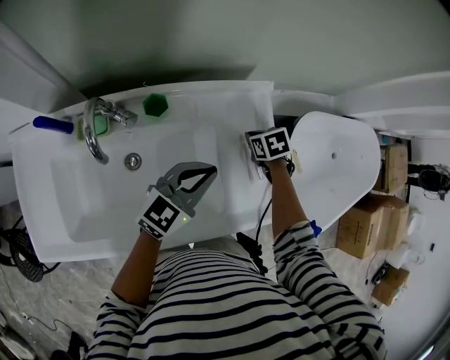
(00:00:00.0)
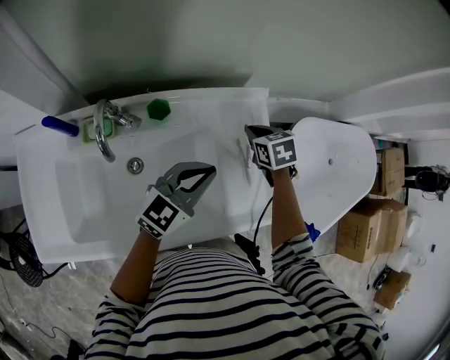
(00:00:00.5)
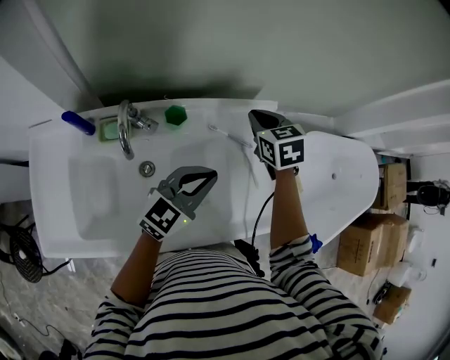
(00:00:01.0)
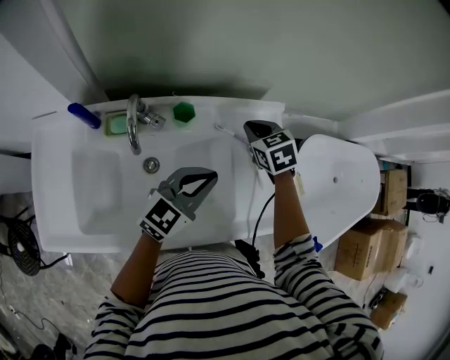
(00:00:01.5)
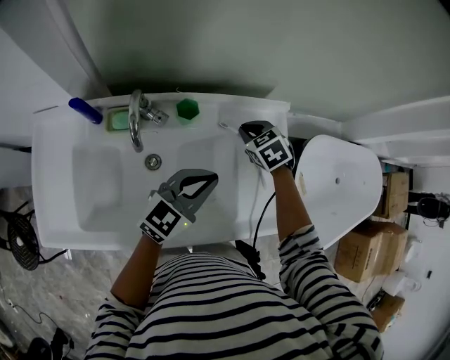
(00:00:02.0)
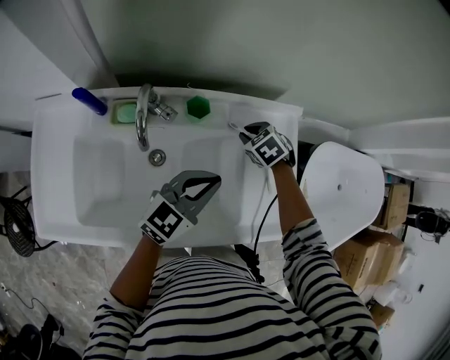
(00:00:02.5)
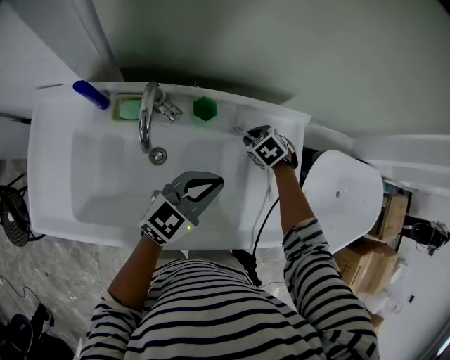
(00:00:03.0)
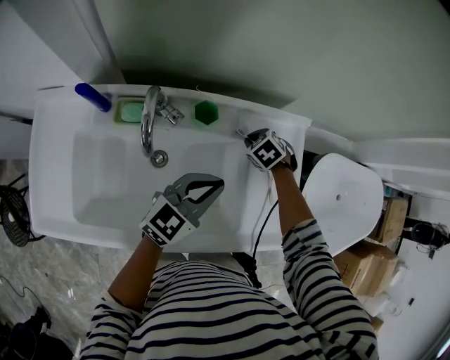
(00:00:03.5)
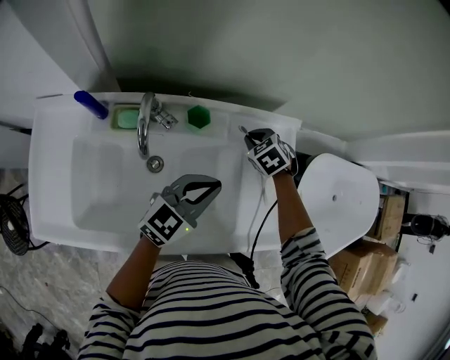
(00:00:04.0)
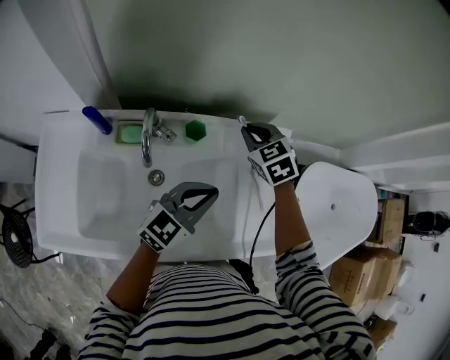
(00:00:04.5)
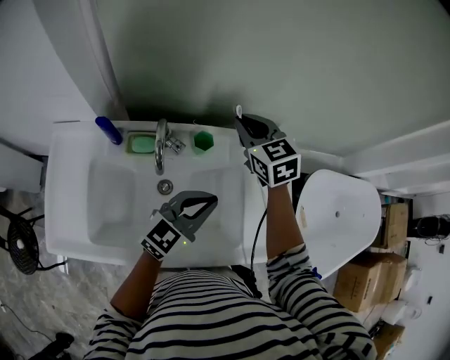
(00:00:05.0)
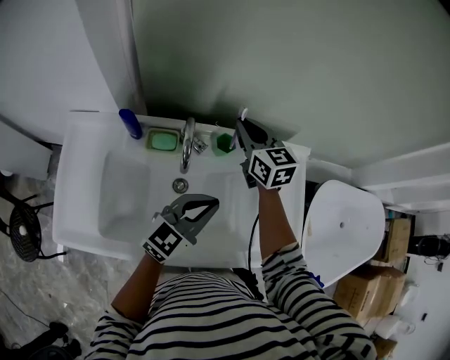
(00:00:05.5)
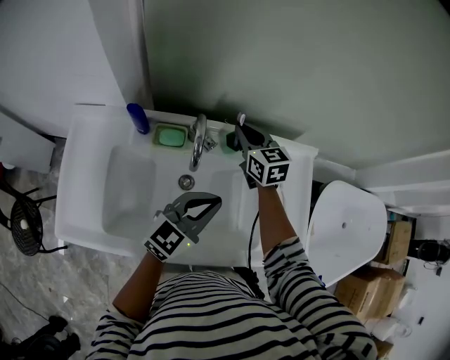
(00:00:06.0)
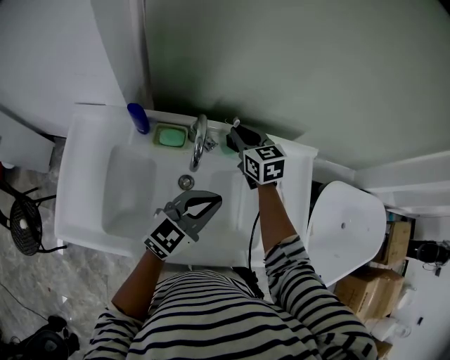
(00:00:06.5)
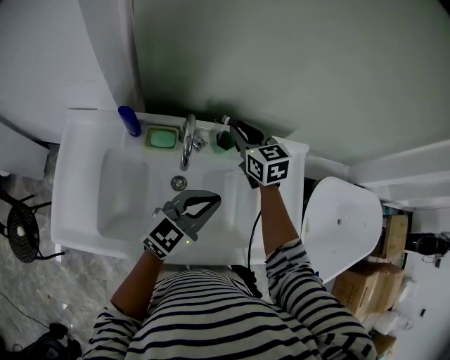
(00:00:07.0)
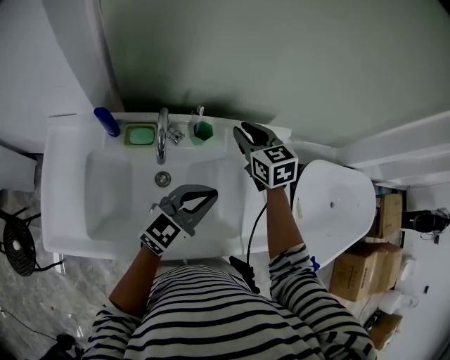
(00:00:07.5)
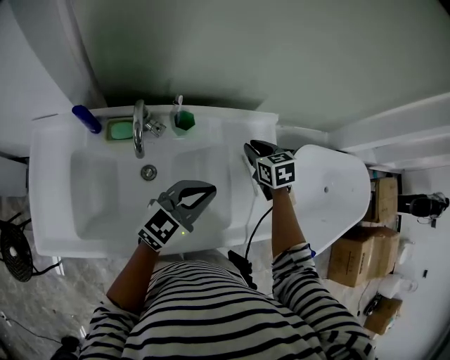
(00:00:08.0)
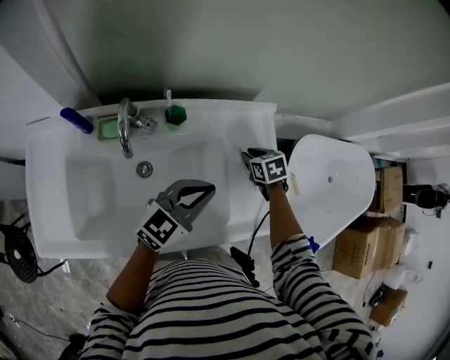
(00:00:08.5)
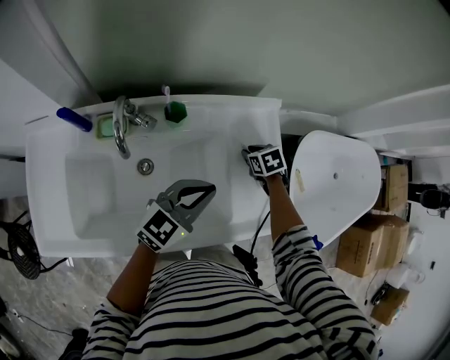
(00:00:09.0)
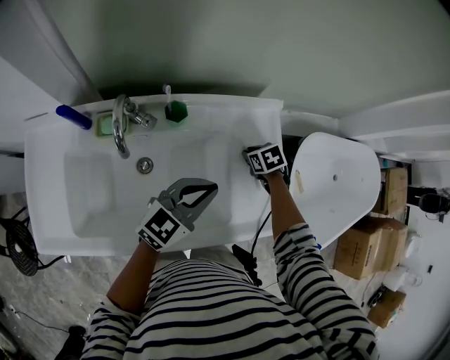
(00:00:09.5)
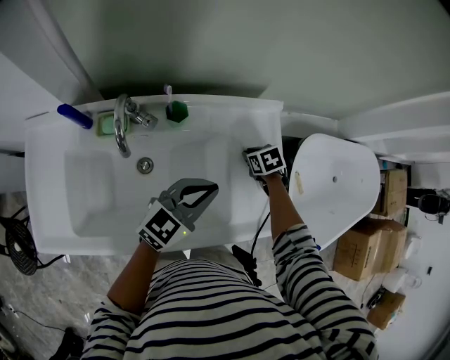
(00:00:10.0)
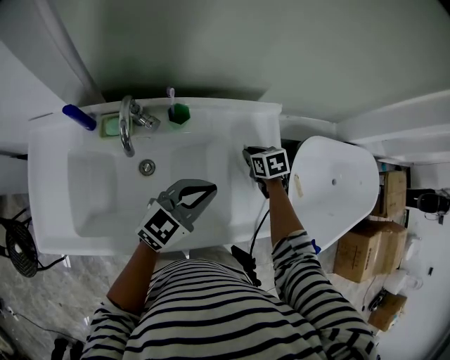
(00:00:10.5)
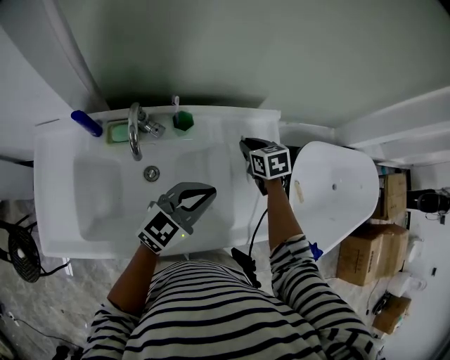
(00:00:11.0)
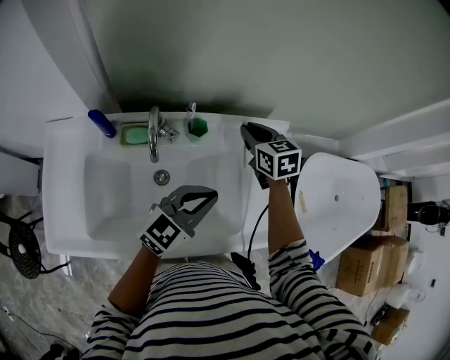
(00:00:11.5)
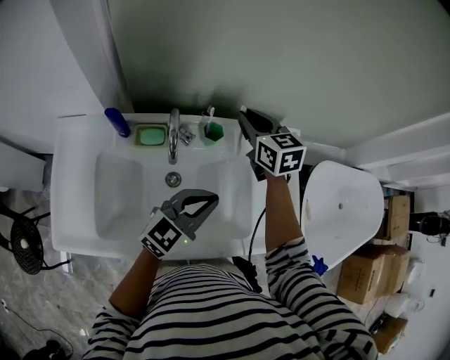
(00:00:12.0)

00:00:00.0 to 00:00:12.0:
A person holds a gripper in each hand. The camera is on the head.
00:00:00.0 to 00:00:02.0: The right gripper is displaced to the left and upward by some 15 cm, and turns by approximately 30 degrees. Meanwhile the left gripper shifts about 5 cm to the left.
00:00:04.0 to 00:00:06.0: The left gripper shifts some 10 cm to the left. The right gripper is displaced to the left and upward by roughly 20 cm, and points its fingers about 40 degrees further upward.
00:00:06.0 to 00:00:08.0: The right gripper moves to the right, roughly 25 cm, and changes its angle by approximately 30 degrees. Meanwhile the left gripper travels to the right by approximately 10 cm.
00:00:08.0 to 00:00:10.0: The right gripper shifts about 15 cm downward, and rotates about 20 degrees.
00:00:10.0 to 00:00:12.0: The right gripper moves upward and to the left, approximately 35 cm, and angles its fingers upward, by some 50 degrees. Meanwhile the left gripper shifts about 10 cm to the left.

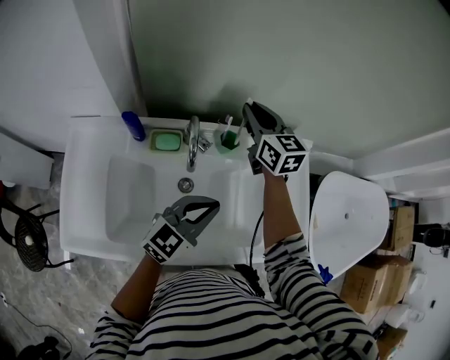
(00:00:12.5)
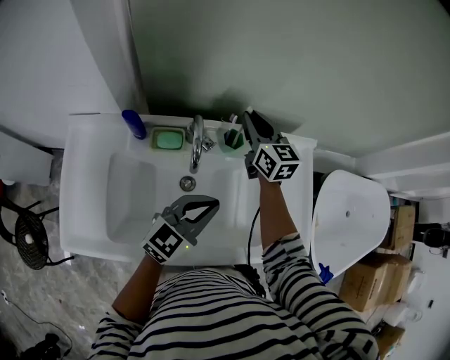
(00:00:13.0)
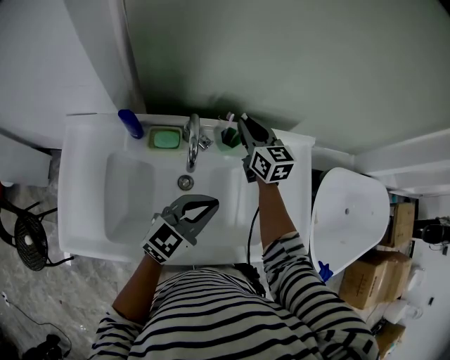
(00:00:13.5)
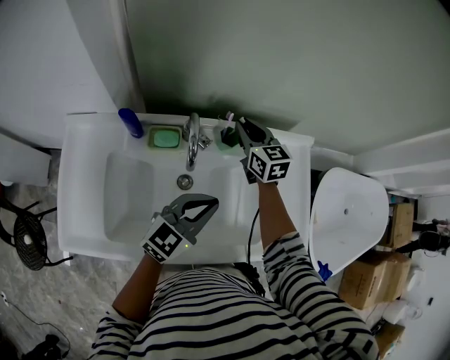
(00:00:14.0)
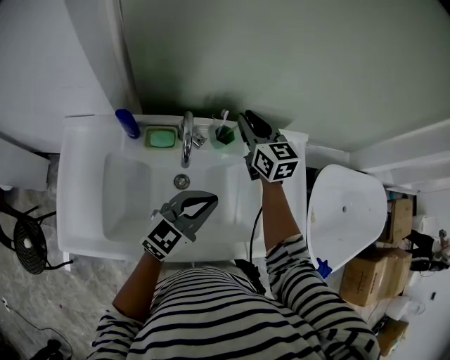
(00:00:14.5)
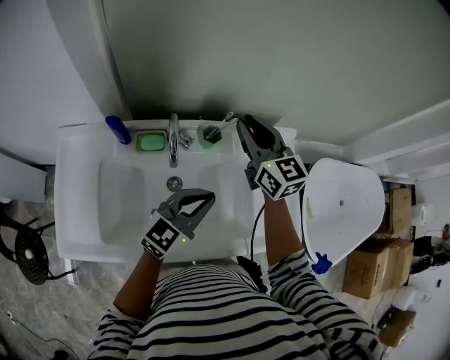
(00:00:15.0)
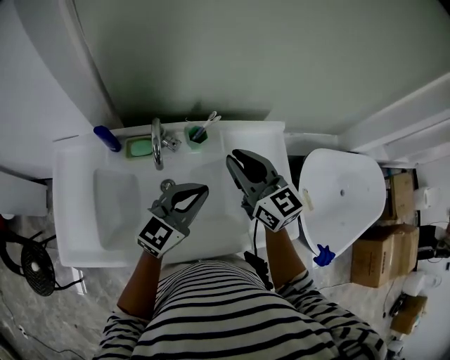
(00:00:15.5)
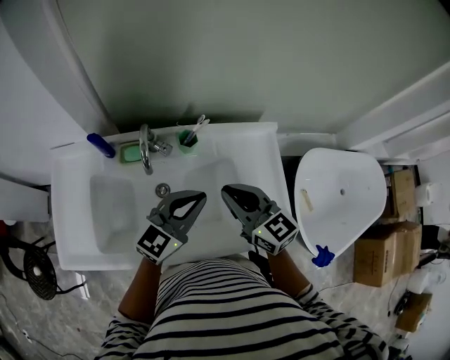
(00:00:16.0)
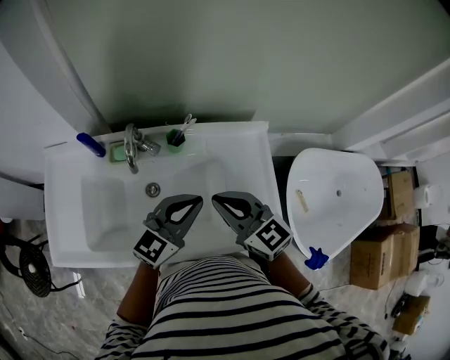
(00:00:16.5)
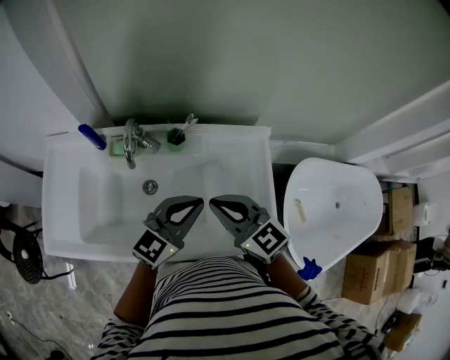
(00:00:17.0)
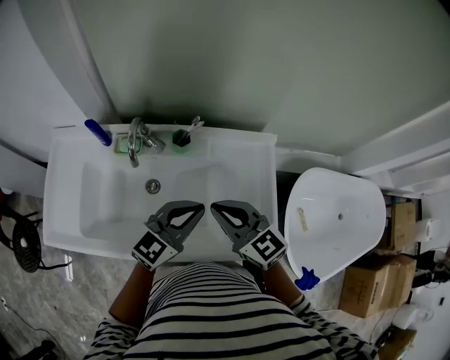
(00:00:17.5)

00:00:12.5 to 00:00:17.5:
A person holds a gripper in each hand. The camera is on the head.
00:00:12.5 to 00:00:15.0: The right gripper moves backward and to the right, approximately 10 cm, and moves about 10 cm downward and comes back.
00:00:15.0 to 00:00:17.5: The right gripper shifts some 20 cm backward and to the right, and rotates about 30 degrees. The left gripper goes some 10 cm to the right.

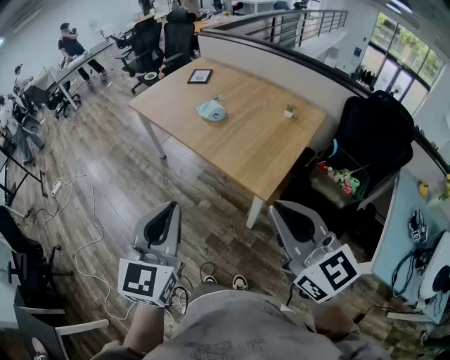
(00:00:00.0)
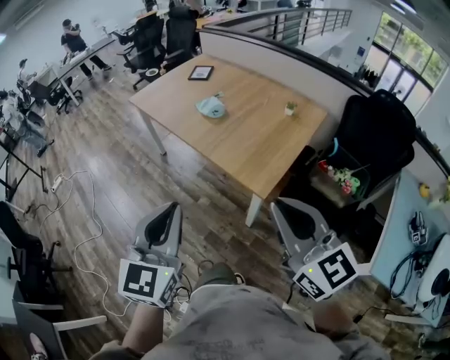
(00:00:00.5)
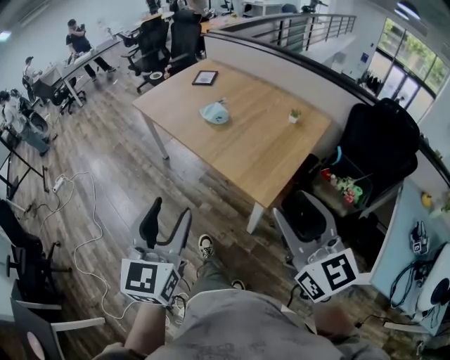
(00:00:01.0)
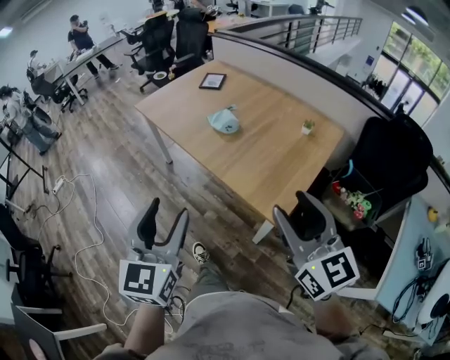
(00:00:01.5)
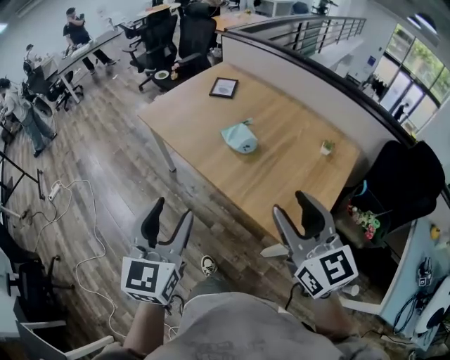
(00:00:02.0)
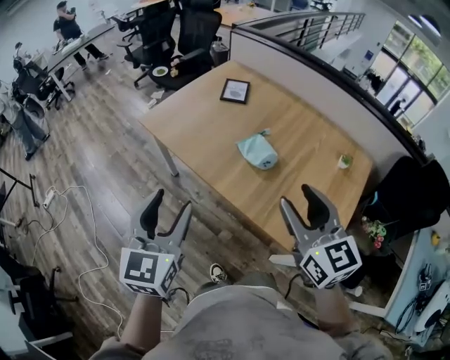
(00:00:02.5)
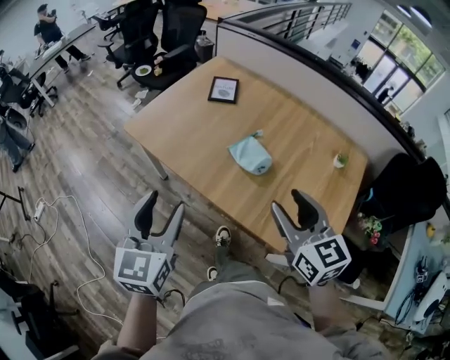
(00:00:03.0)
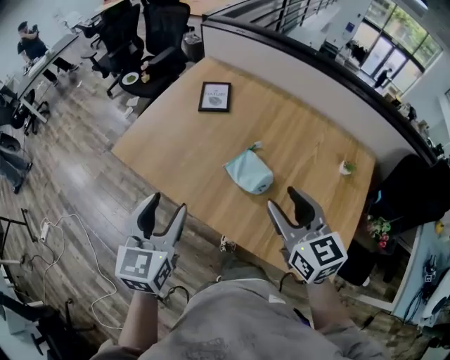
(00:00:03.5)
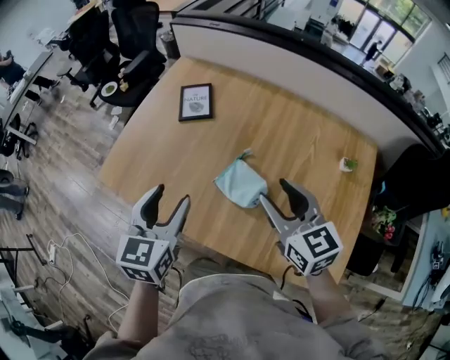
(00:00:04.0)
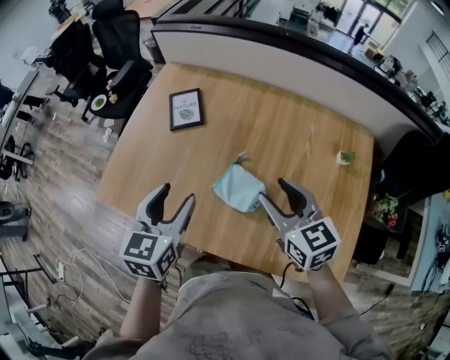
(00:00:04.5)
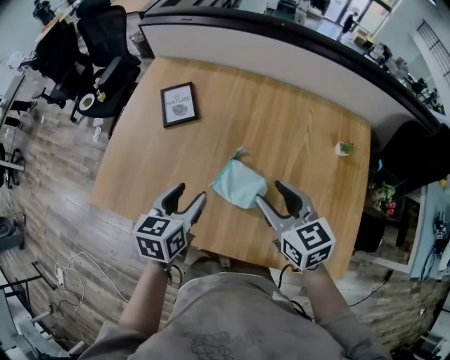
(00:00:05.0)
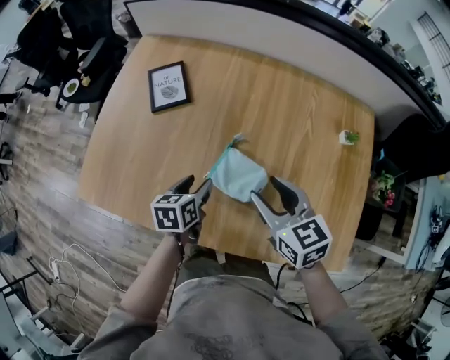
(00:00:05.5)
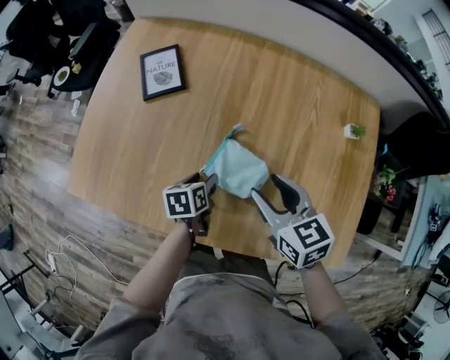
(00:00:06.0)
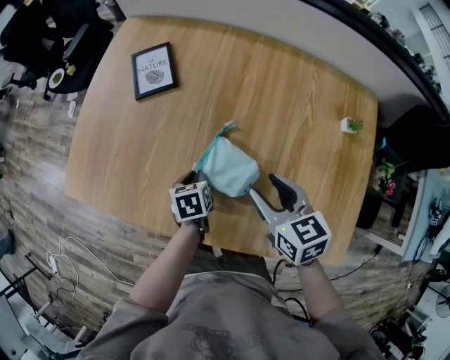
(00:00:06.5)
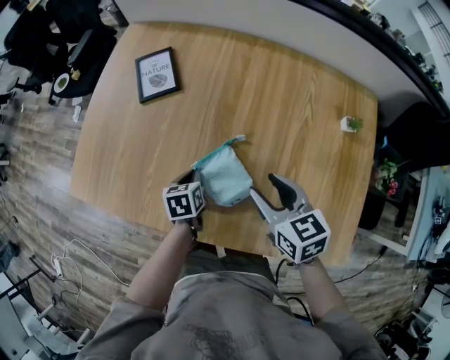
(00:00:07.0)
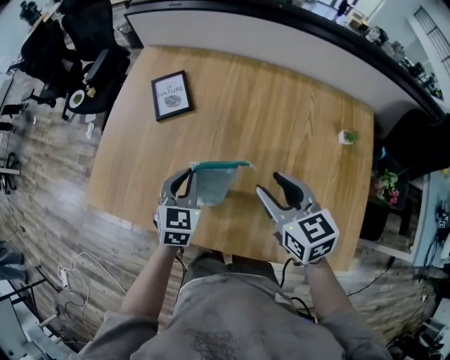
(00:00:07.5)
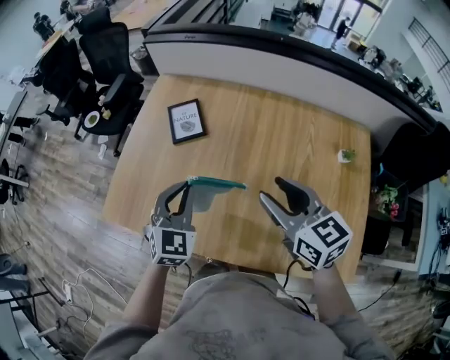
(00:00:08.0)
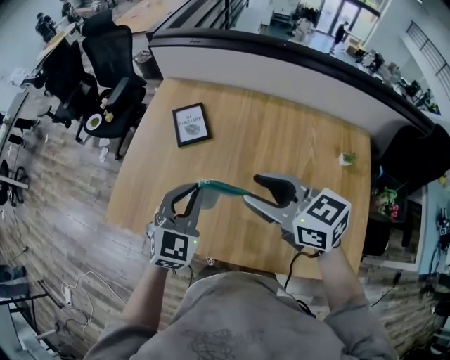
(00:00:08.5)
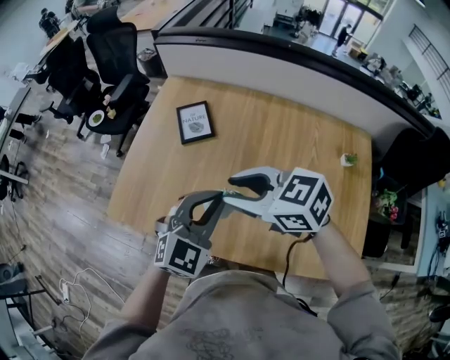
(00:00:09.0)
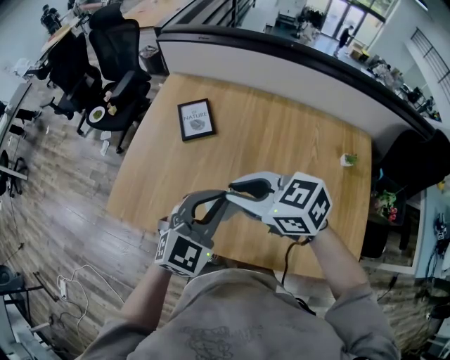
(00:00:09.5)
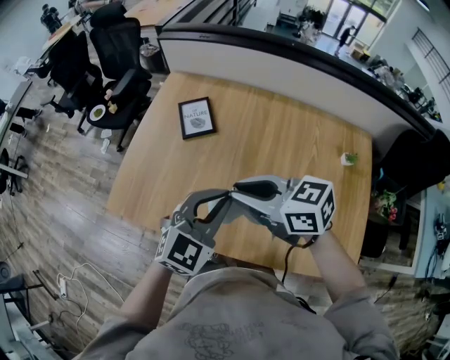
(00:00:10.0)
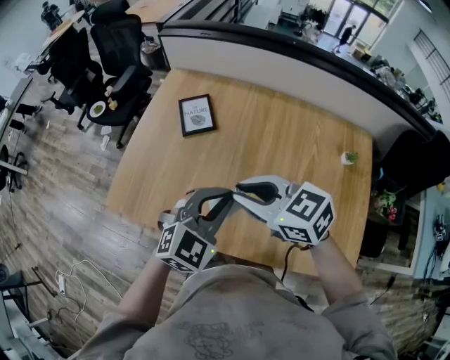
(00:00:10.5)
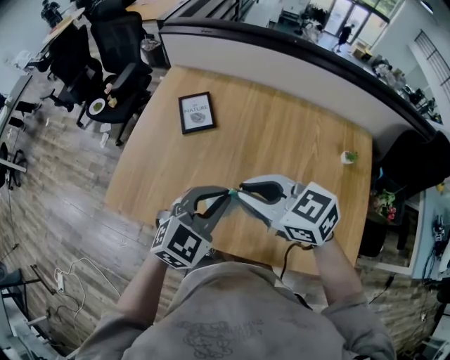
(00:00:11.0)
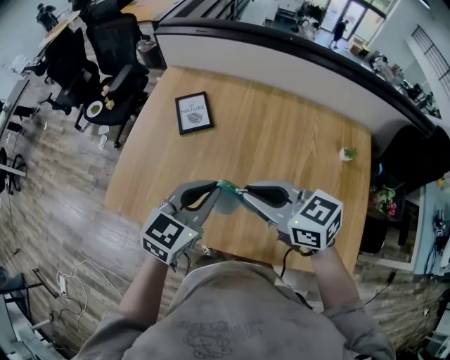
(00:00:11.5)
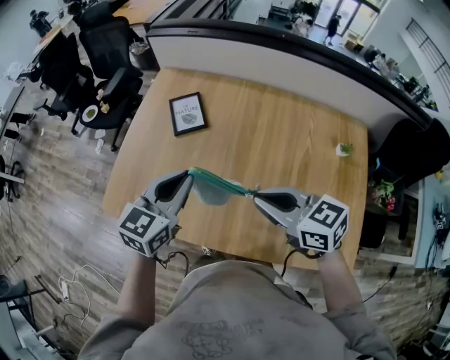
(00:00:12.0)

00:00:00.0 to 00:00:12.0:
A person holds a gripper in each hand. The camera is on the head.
00:00:00.0 to 00:00:02.0: The two grippers go about 30 cm forward. The left gripper opens, while the right gripper opens.
00:00:02.0 to 00:00:04.0: Both grippers are carried forward, roughly 40 cm. The left gripper rotates roughly 20 degrees.
00:00:04.0 to 00:00:06.0: The right gripper travels downward by approximately 15 cm, and turns by some 20 degrees, while the left gripper travels downward by about 30 cm, and swivels about 50 degrees.
00:00:06.0 to 00:00:08.0: The right gripper travels upward by approximately 15 cm, while the left gripper heads upward, covering some 25 cm, rotates around the line of its fingers by approximately 60 degrees, clockwise from behind, and closes up.
00:00:08.0 to 00:00:10.0: The right gripper goes approximately 10 cm to the left, changes its angle by approximately 30 degrees, and closes up; the left gripper moves backward and upward, roughly 10 cm, and swivels approximately 20 degrees.
00:00:10.0 to 00:00:12.0: The right gripper moves to the right, roughly 5 cm. Meanwhile the left gripper shifts approximately 10 cm to the left and forward, and changes its angle by approximately 30 degrees.